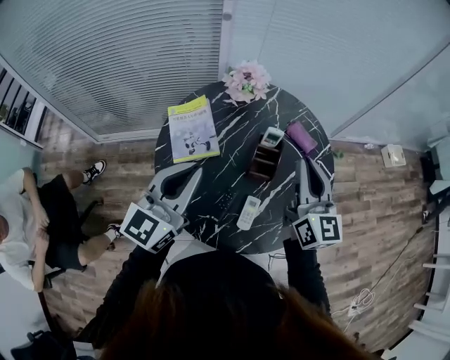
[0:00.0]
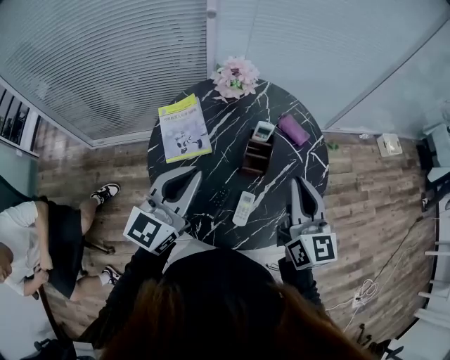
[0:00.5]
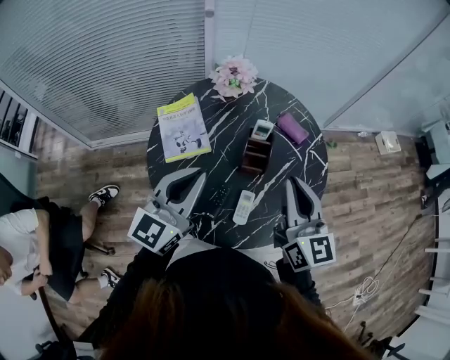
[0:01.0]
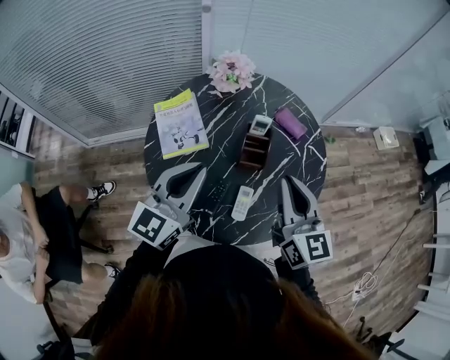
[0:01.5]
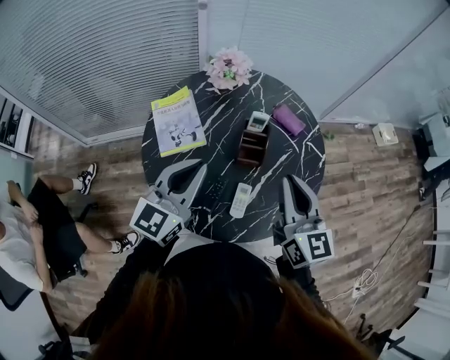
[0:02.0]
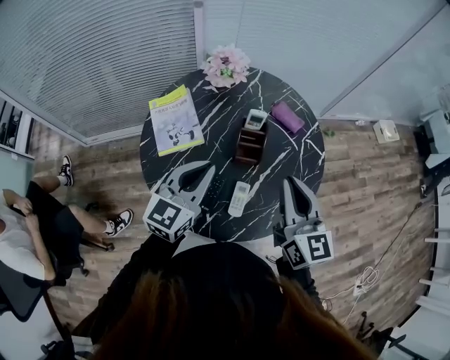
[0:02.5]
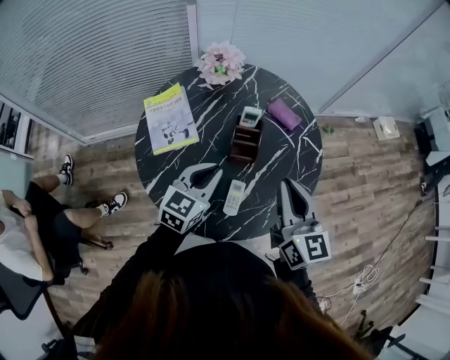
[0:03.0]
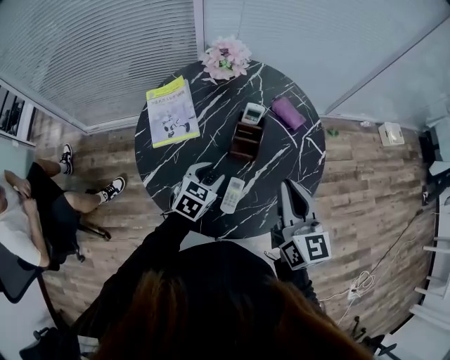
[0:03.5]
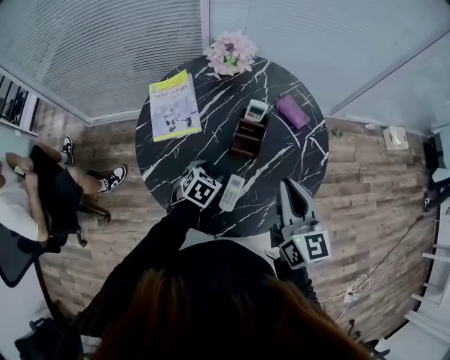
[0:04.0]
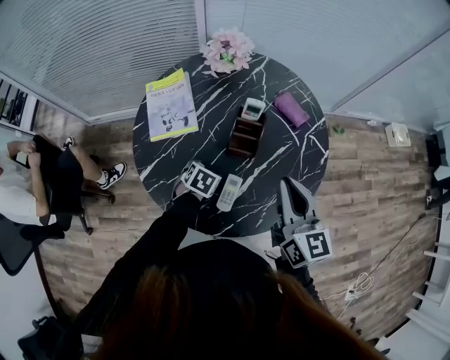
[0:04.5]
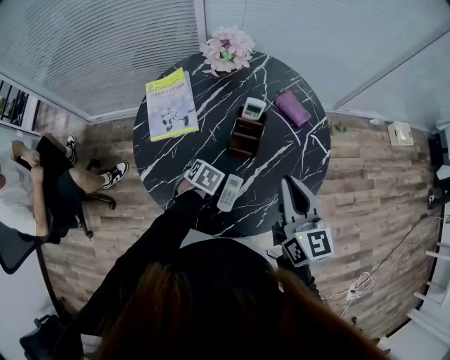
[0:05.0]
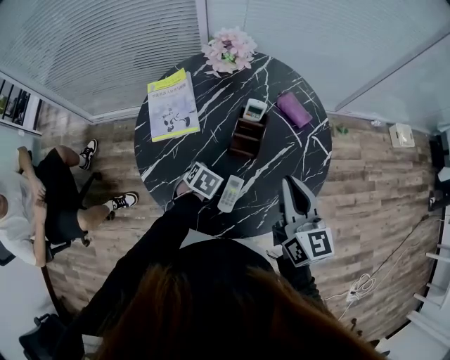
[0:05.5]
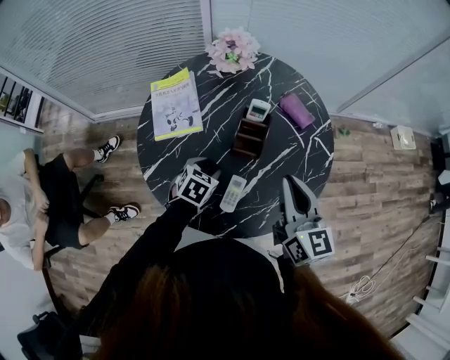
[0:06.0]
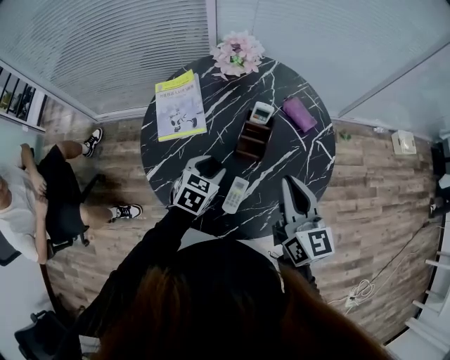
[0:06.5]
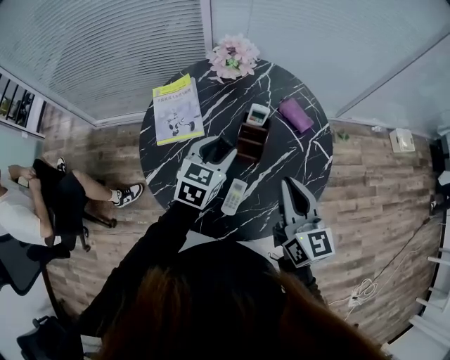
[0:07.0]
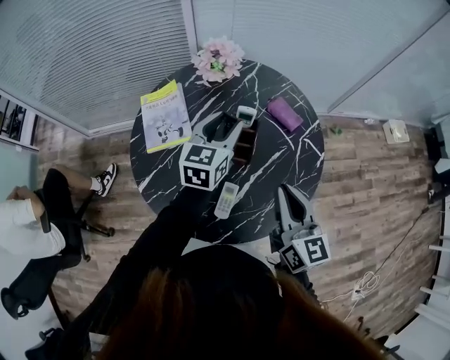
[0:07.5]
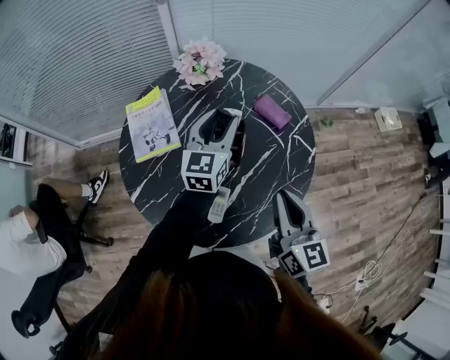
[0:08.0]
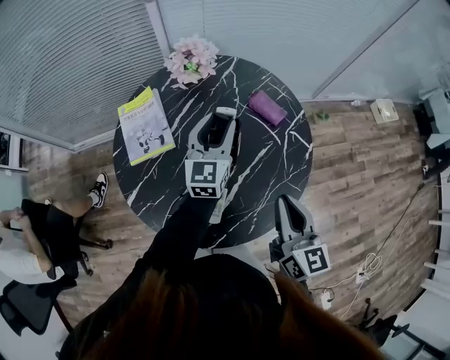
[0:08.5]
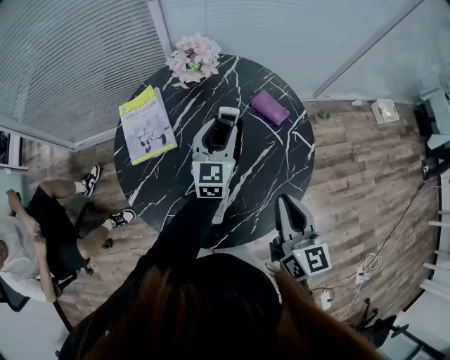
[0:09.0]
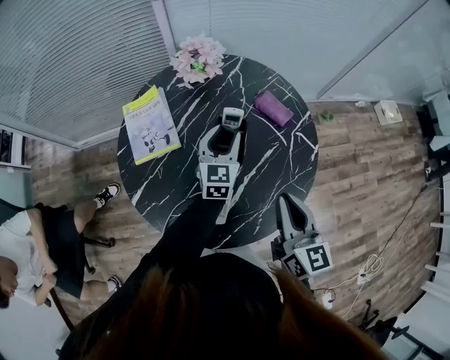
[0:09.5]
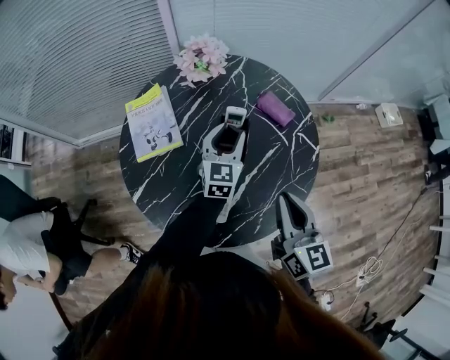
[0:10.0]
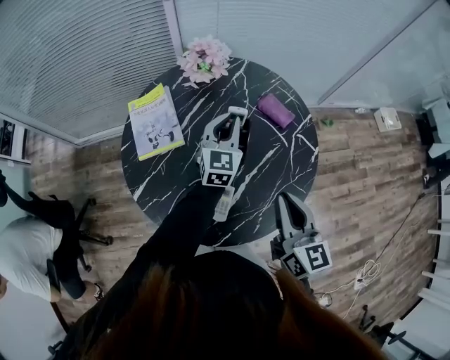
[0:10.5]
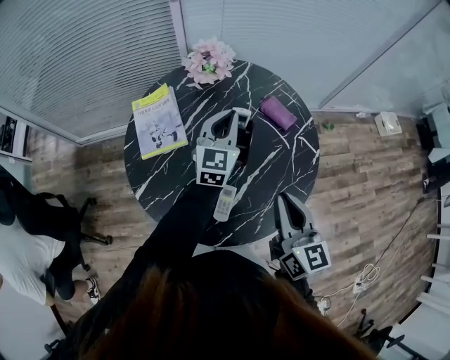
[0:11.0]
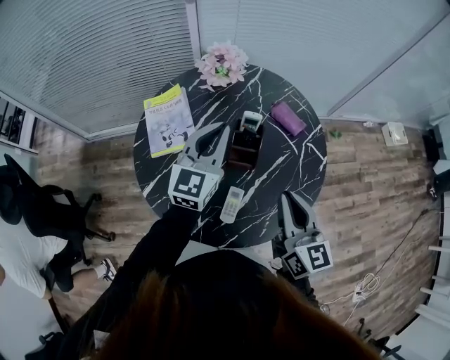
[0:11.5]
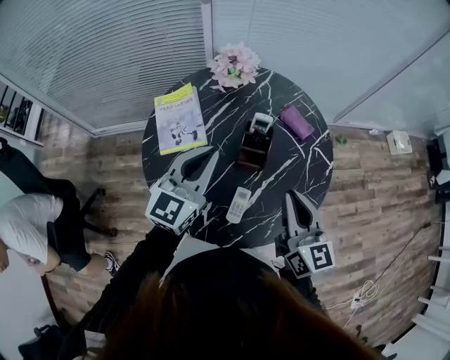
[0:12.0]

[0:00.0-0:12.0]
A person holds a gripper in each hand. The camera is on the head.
0:00.0 to 0:02.0: The right gripper moves backward, roughly 10 cm; the left gripper shifts by roughly 5 cm.
0:02.0 to 0:04.0: The left gripper is displaced downward by roughly 30 cm, tilts its fingers roughly 60 degrees downward, and opens up. Meanwhile the right gripper heads downward, covering about 5 cm.
0:04.0 to 0:06.0: The grippers make only small movements.
0:06.0 to 0:08.0: The left gripper travels upward, forward and to the right by about 25 cm, and angles its fingers upward, by roughly 50 degrees.
0:08.0 to 0:10.0: The left gripper heads downward, covering roughly 10 cm.
0:10.0 to 0:12.0: The left gripper moves upward, to the left and backward, approximately 20 cm, and closes.

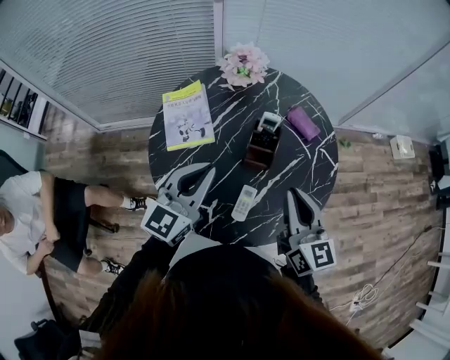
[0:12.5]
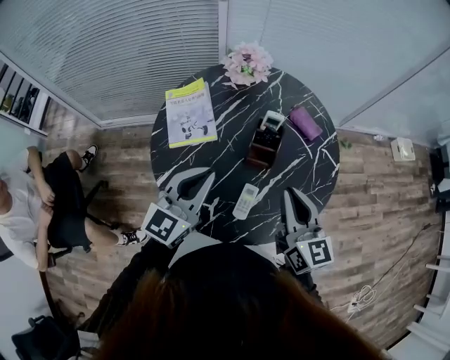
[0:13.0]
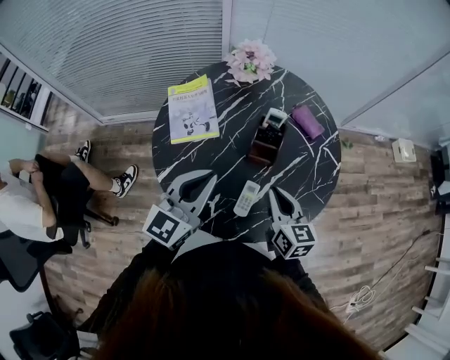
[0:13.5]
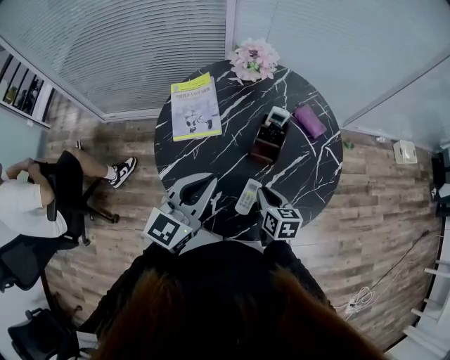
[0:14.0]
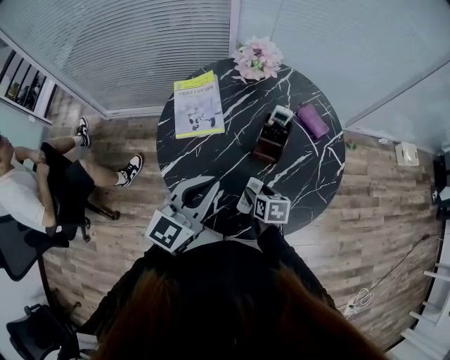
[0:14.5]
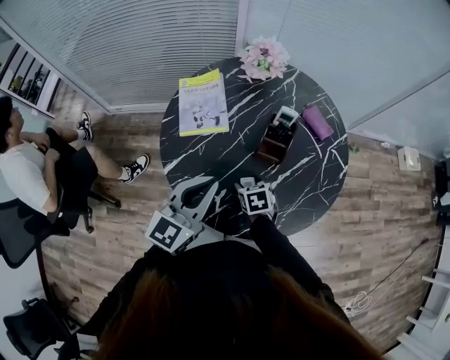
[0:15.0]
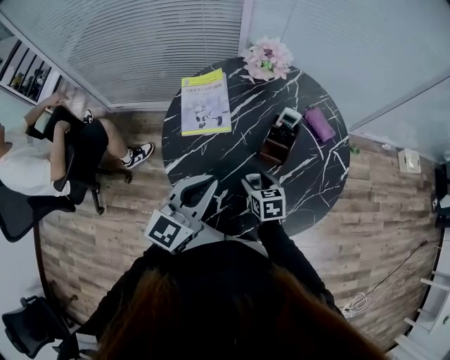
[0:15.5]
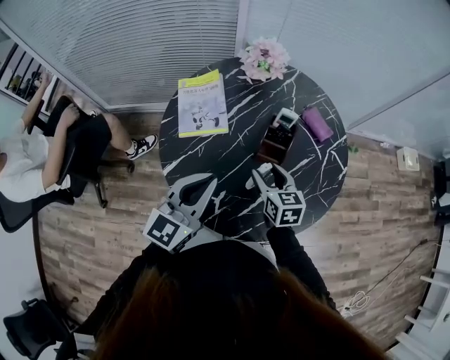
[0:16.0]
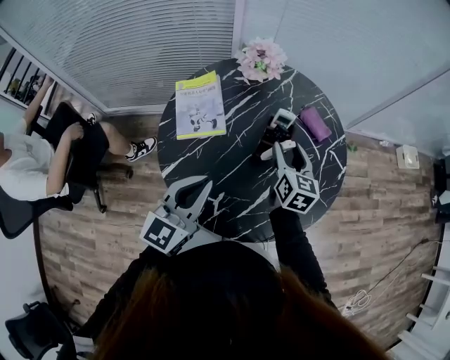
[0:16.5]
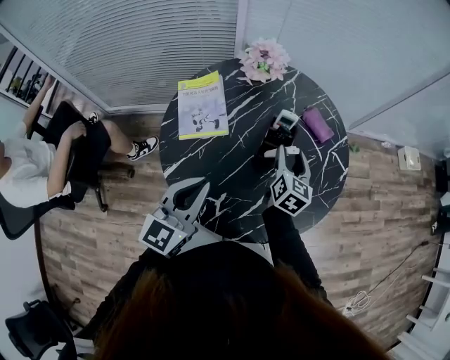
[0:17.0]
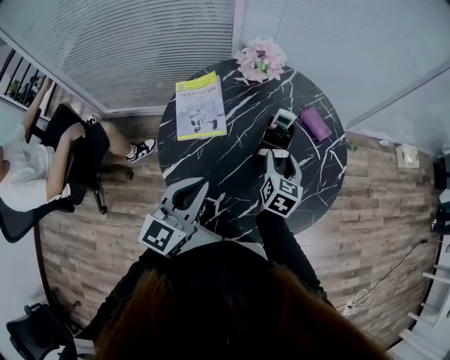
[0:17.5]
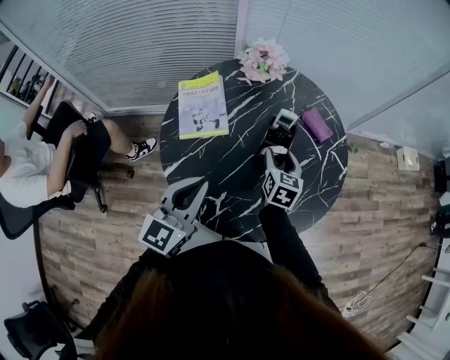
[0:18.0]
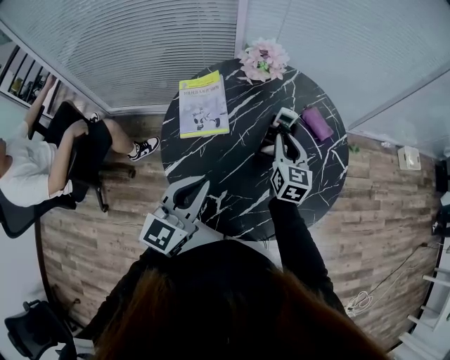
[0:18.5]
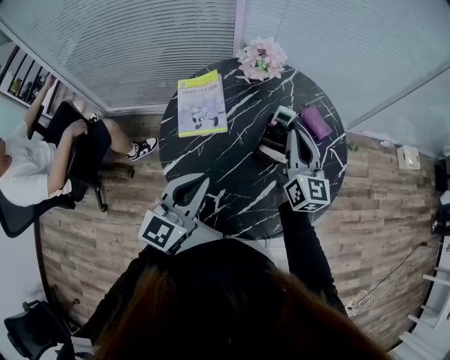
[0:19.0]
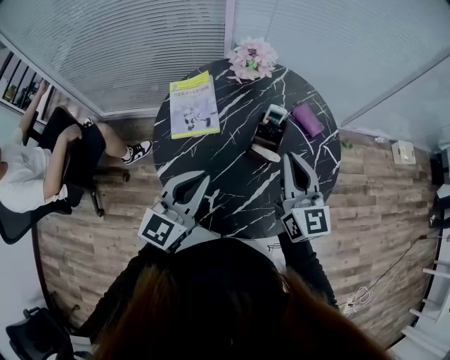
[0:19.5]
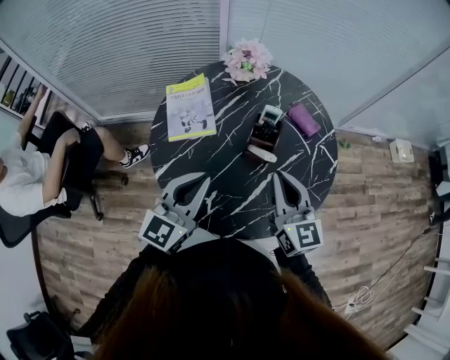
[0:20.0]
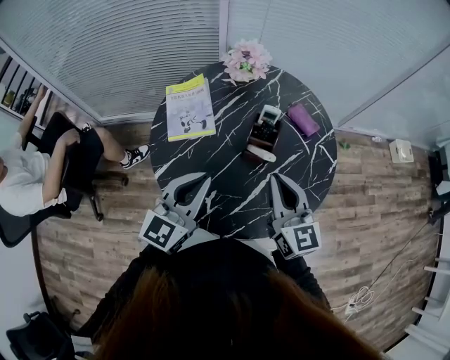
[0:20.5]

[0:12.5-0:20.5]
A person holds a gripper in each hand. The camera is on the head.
0:12.5 to 0:14.5: The right gripper moves downward, roughly 25 cm, angles its fingers downward, by about 50 degrees, and opens. Meanwhile the left gripper heads backward, covering approximately 5 cm.
0:14.5 to 0:16.5: The right gripper travels upward and forward by roughly 20 cm, and tips its fingers upward by approximately 30 degrees.
0:16.5 to 0:18.5: The right gripper closes its fingers.
0:18.5 to 0:20.5: The right gripper shifts approximately 20 cm backward and upward.

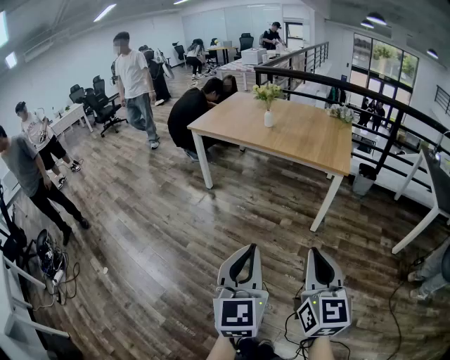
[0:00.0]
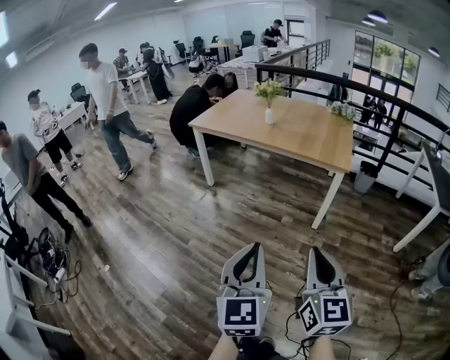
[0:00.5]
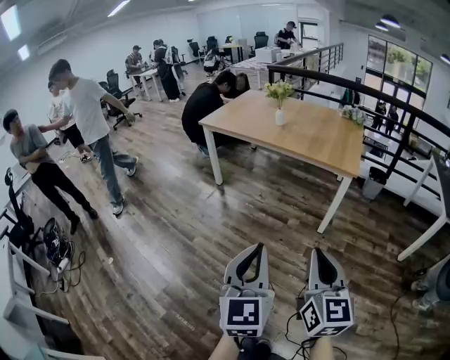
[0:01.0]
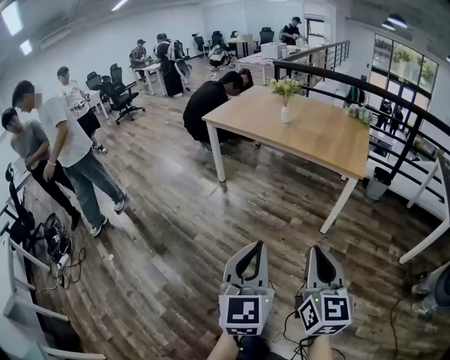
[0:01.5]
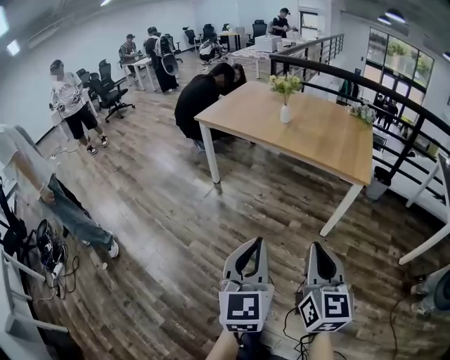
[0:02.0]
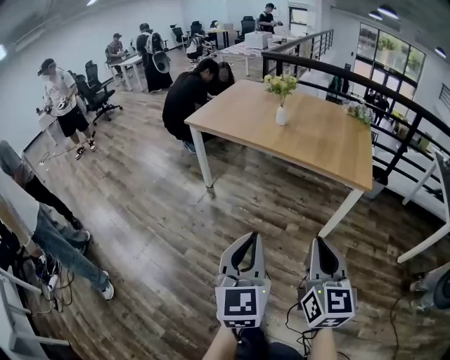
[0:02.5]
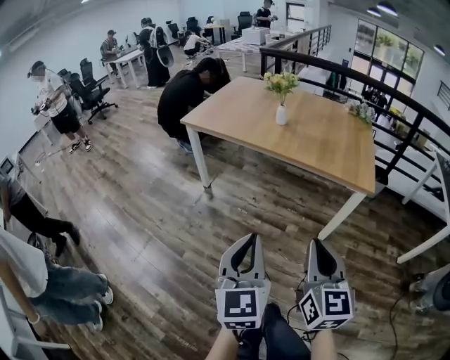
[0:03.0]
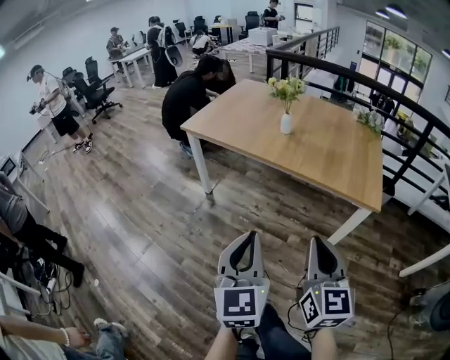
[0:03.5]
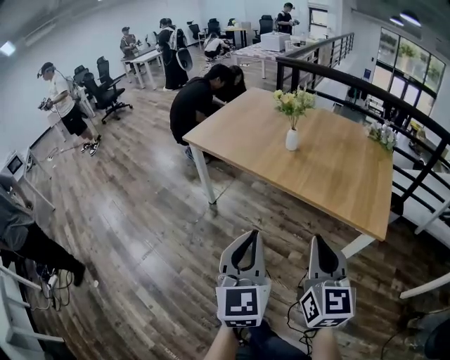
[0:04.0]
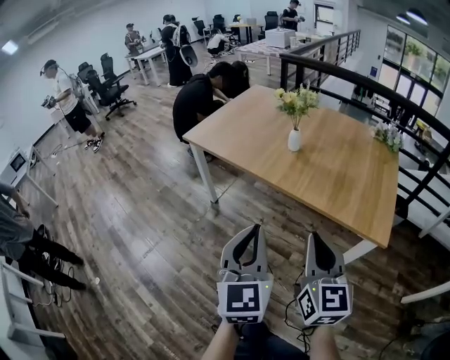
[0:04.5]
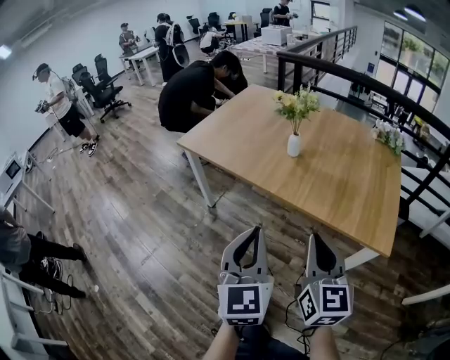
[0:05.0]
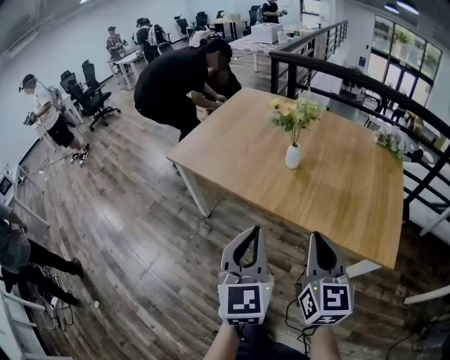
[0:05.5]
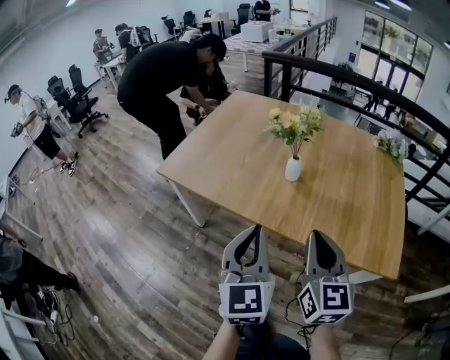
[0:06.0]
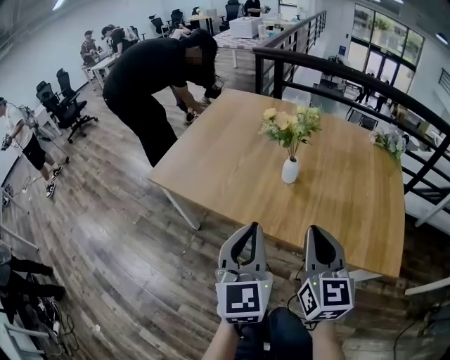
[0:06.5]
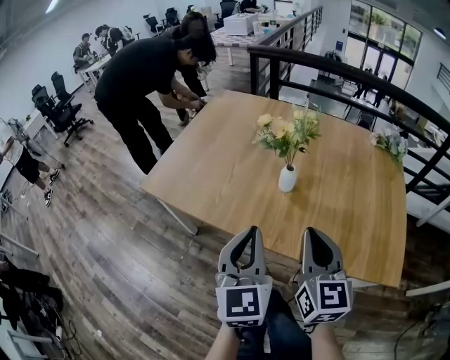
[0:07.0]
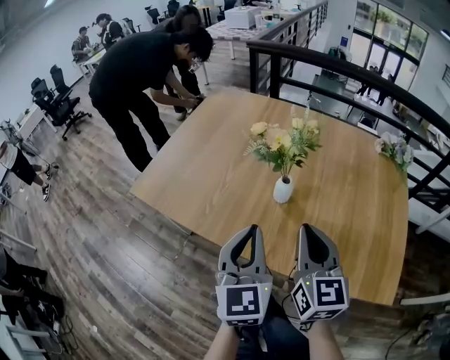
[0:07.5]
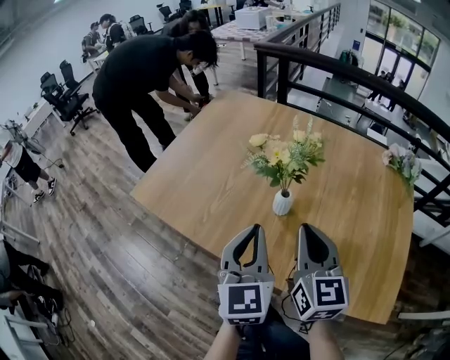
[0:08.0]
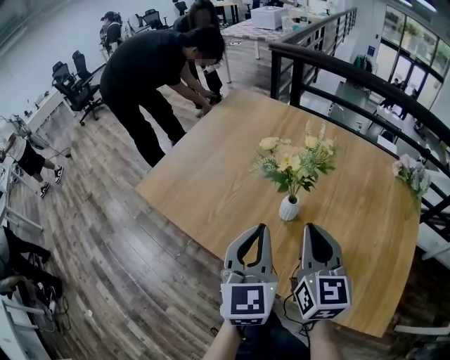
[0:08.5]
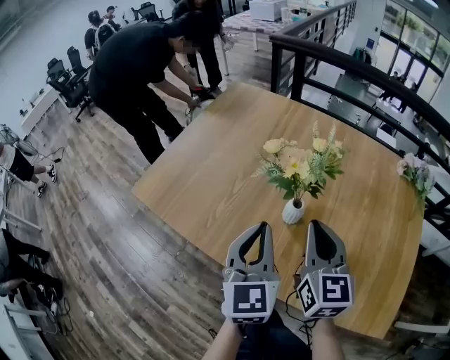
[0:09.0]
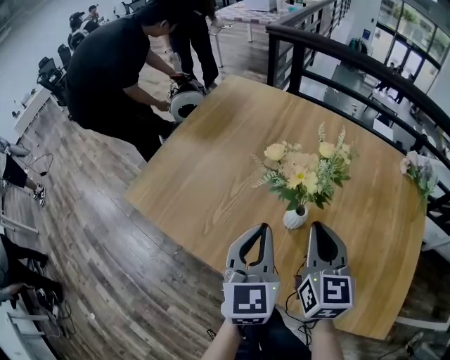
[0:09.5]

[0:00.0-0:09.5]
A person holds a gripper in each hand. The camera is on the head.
0:00.0 to 0:02.0: The grippers both shift forward by approximately 15 cm.
0:02.0 to 0:04.0: The grippers both shift forward by approximately 30 cm.
0:04.0 to 0:05.5: Both grippers move forward, roughly 20 cm.
0:05.5 to 0:07.5: The grippers both shift forward by about 25 cm.
0:07.5 to 0:09.5: Both grippers move forward, roughly 15 cm.
